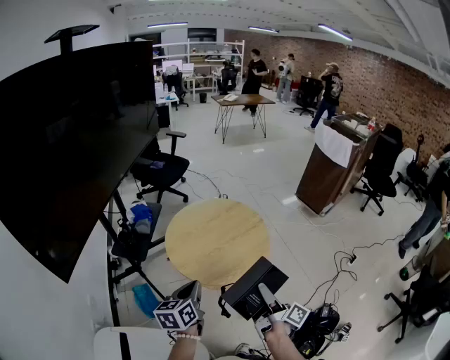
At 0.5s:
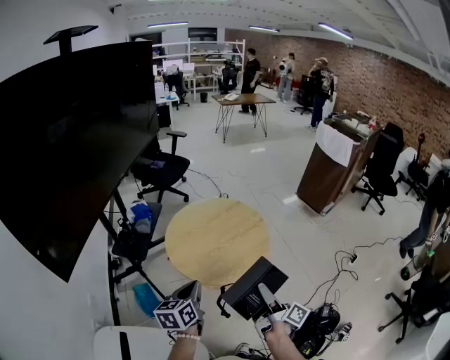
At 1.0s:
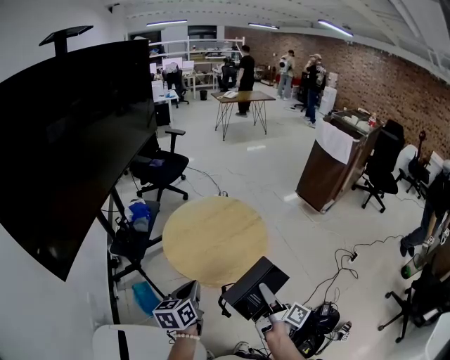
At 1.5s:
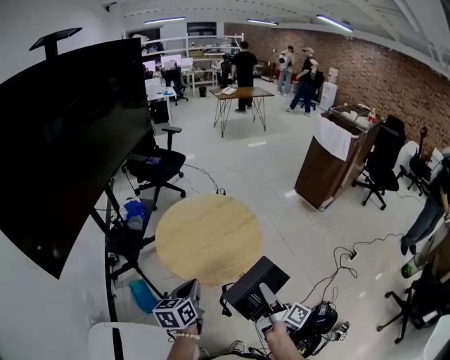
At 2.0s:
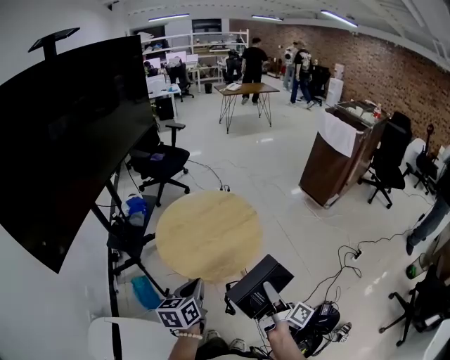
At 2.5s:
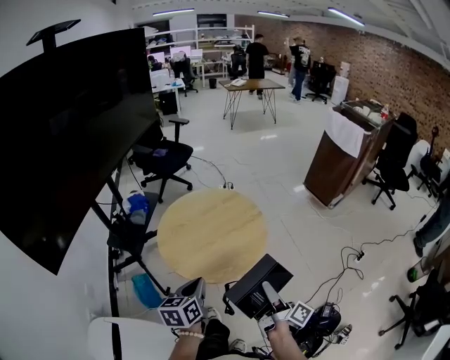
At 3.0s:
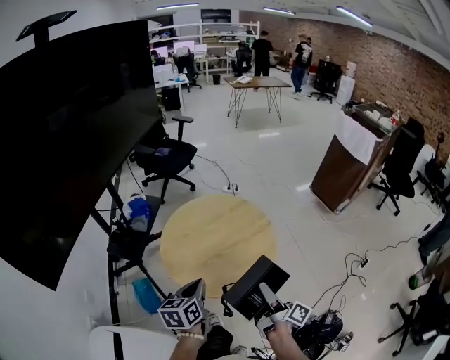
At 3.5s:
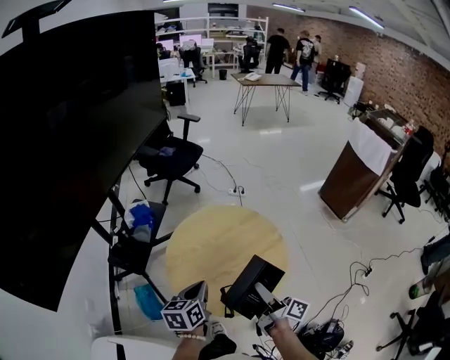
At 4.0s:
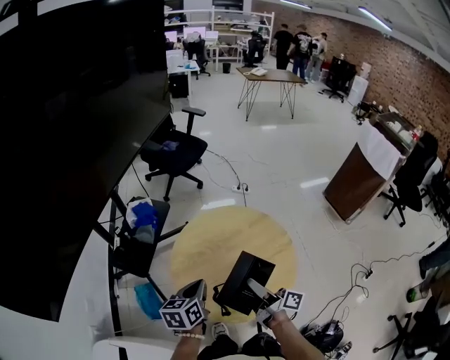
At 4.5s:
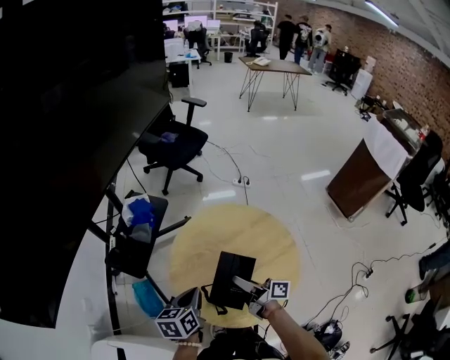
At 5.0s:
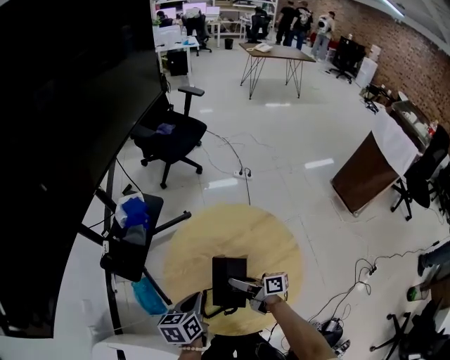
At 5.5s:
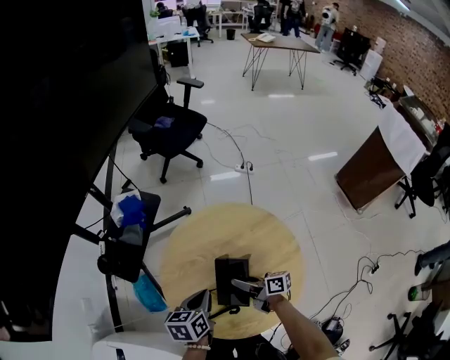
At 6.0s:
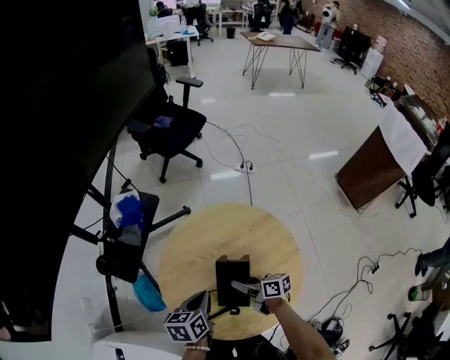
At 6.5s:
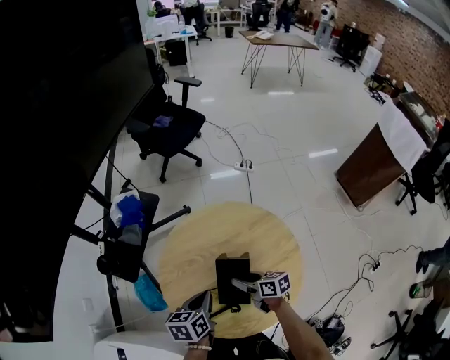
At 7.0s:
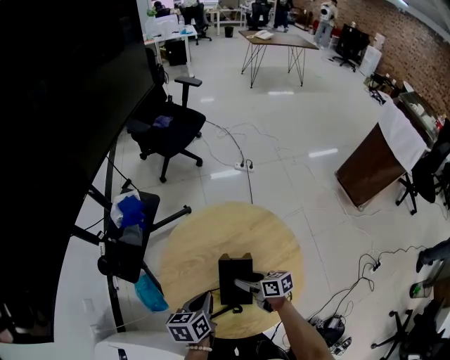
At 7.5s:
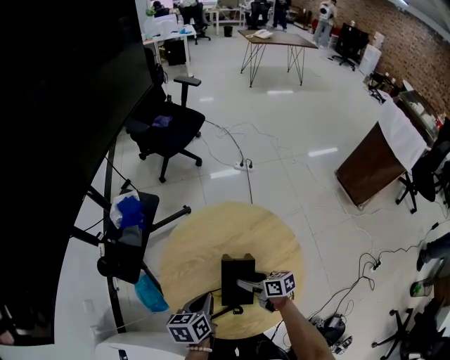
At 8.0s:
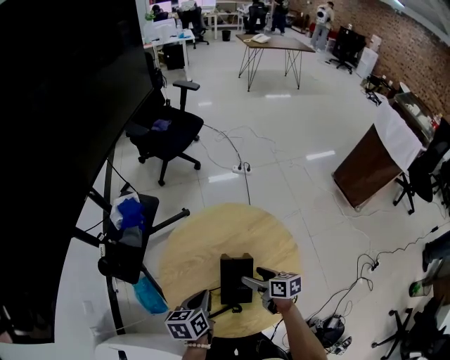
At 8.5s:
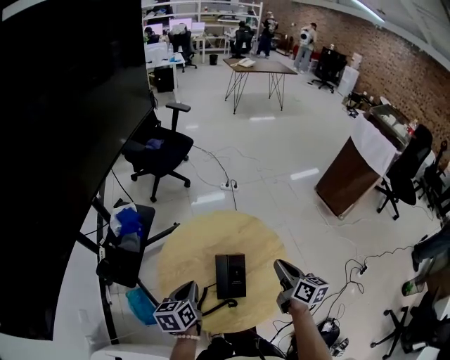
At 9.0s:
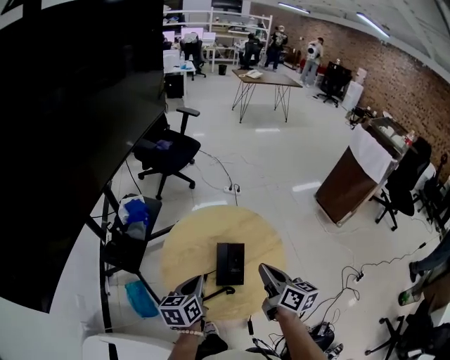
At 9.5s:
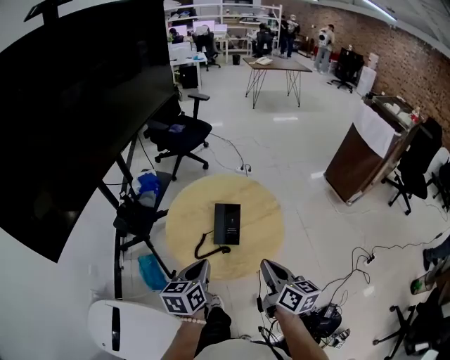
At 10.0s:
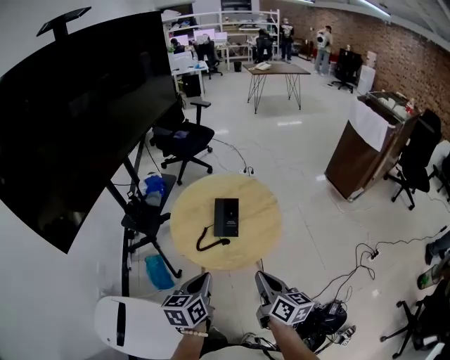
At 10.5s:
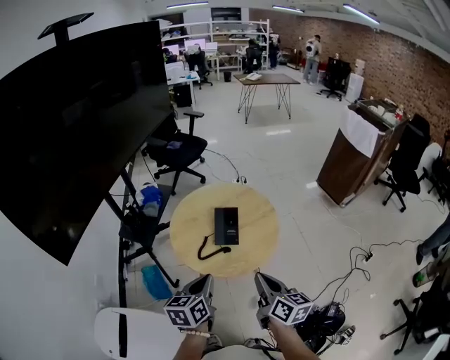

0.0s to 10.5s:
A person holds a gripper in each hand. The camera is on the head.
0.0s to 2.0s: Both grippers travel together to the right, some 10 cm.
2.0s to 4.0s: Both grippers move forward and to the left, roughly 25 cm. The right gripper changes its angle by approximately 30 degrees.
4.0s to 6.5s: The left gripper shifts about 10 cm downward and to the right; the right gripper goes some 20 cm downward and forward, and angles its fingers downward, by some 30 degrees.
6.5s to 8.5s: The left gripper is displaced upward by some 5 cm. Meanwhile the right gripper travels upward and to the right by roughly 25 cm, changes its angle by some 40 degrees, and closes.
8.5s to 10.5s: The two grippers go about 25 cm backward.

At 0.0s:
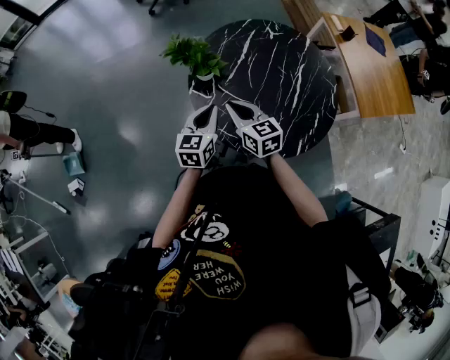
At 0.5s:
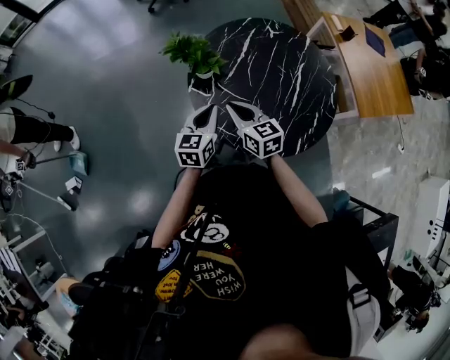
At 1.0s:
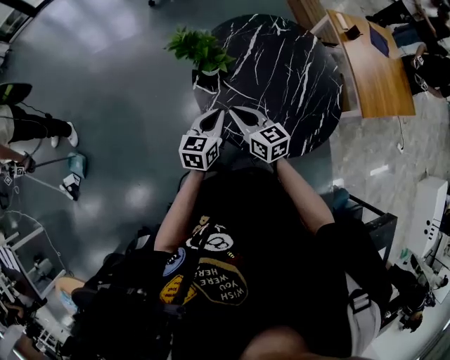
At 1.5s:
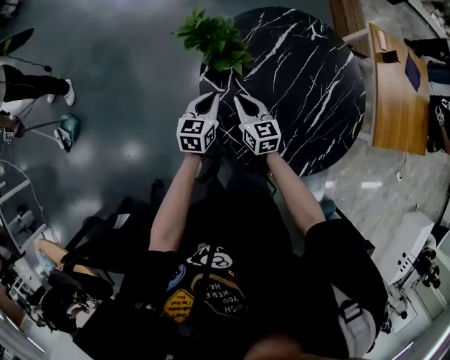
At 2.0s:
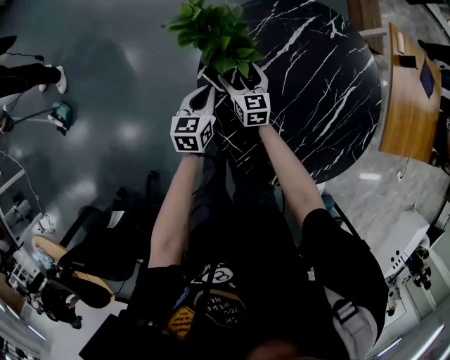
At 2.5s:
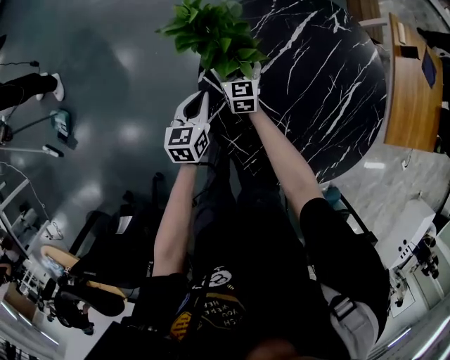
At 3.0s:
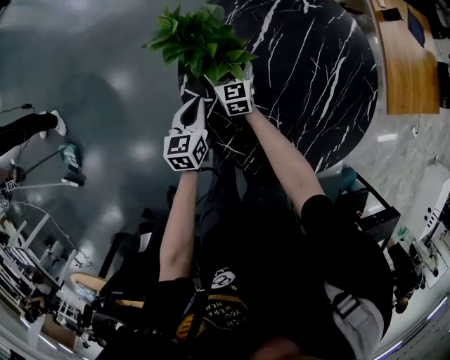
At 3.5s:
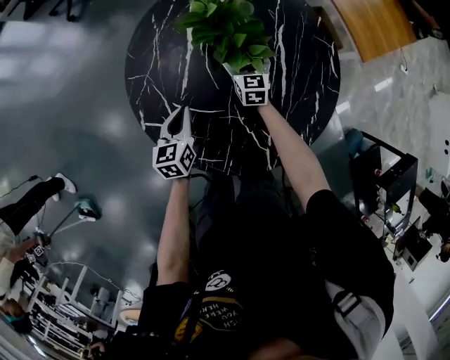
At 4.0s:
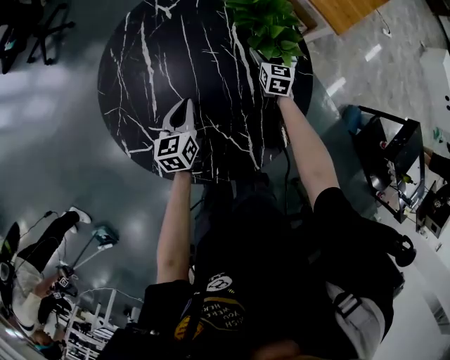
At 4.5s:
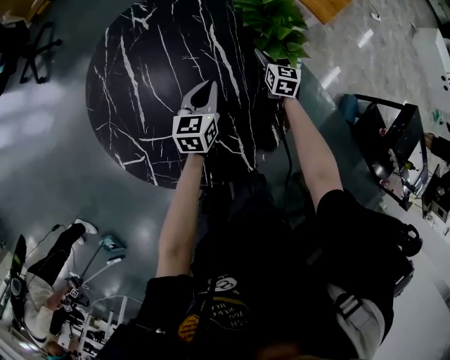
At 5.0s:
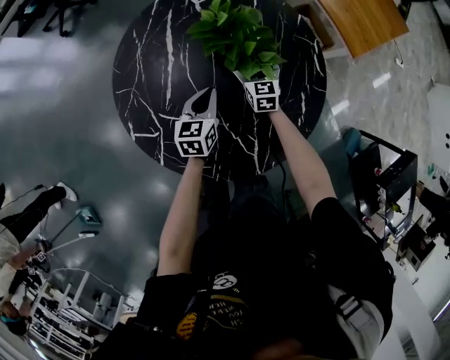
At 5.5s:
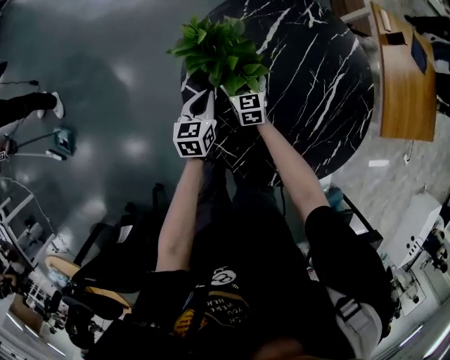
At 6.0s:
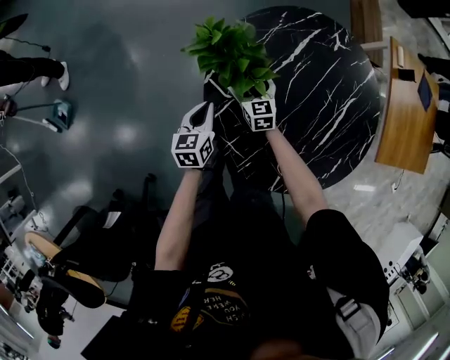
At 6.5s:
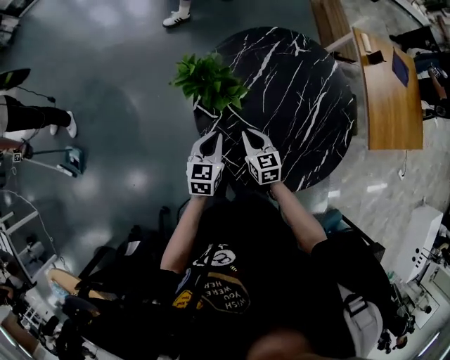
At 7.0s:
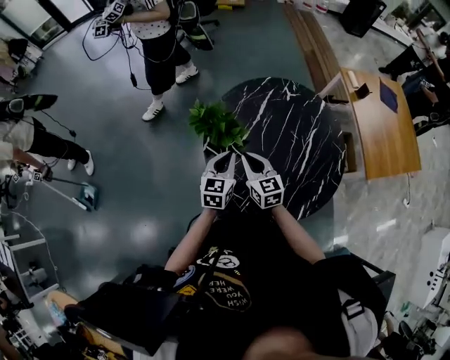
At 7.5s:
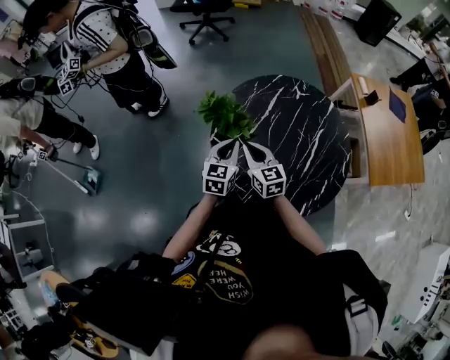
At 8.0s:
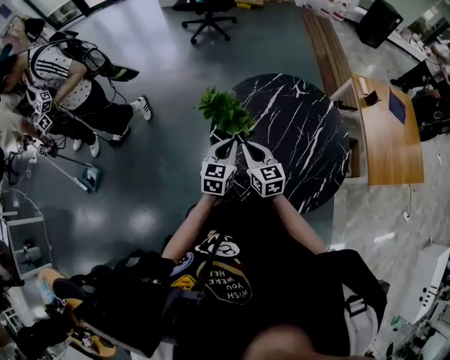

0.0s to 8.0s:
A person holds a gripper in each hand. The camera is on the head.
0.0s to 2.0s: Both grippers travel together downward and forward, roughly 30 cm. The right gripper opens its fingers, while the left gripper swivels some 20 degrees.
2.0s to 4.0s: The left gripper shifts by roughly 30 cm, and changes its angle by roughly 30 degrees. The right gripper changes place by some 50 cm, and changes its angle by about 60 degrees.
4.0s to 6.0s: The right gripper changes place by some 50 cm, and rotates roughly 60 degrees, while the left gripper shifts by approximately 30 cm, and turns by approximately 40 degrees.
6.0s to 8.0s: The left gripper shifts about 20 cm upward, and changes its angle by approximately 30 degrees. Meanwhile the right gripper goes roughly 30 cm upward and backward, and closes.

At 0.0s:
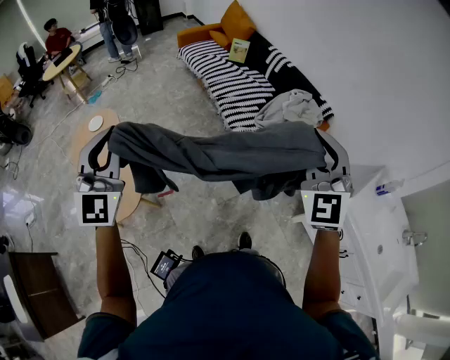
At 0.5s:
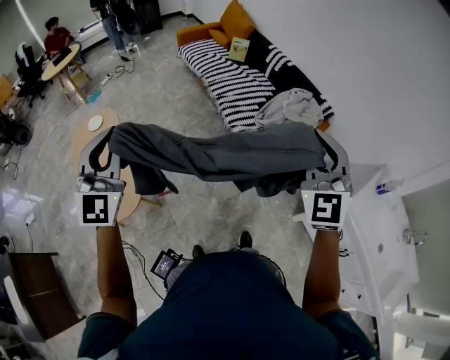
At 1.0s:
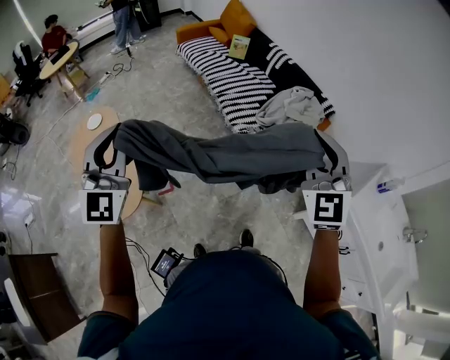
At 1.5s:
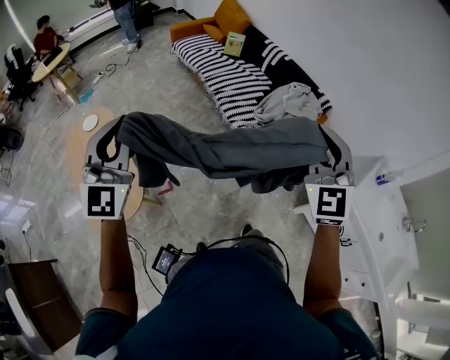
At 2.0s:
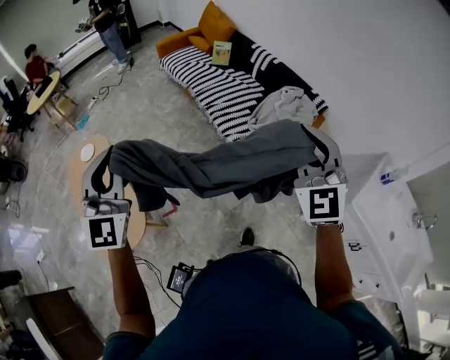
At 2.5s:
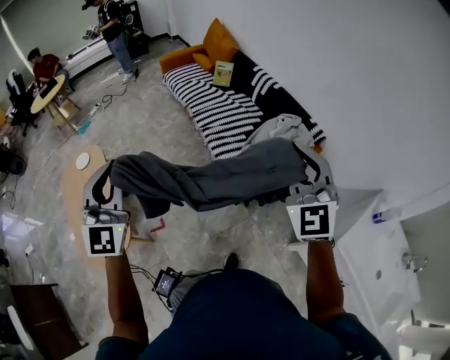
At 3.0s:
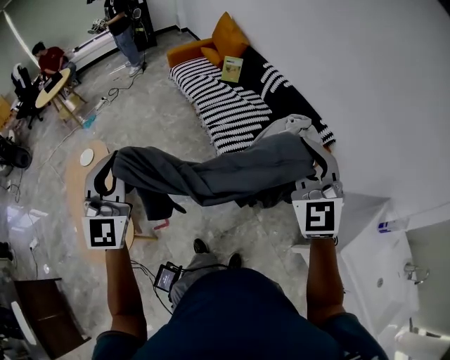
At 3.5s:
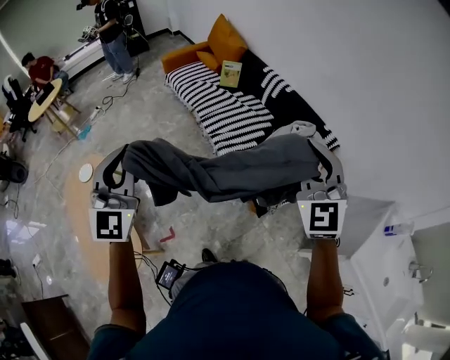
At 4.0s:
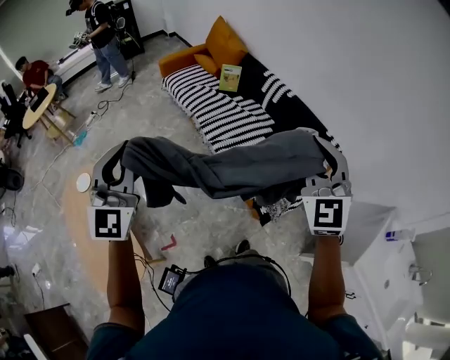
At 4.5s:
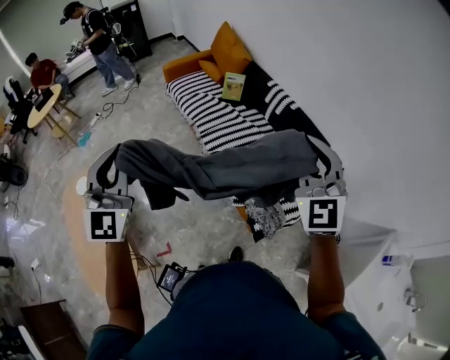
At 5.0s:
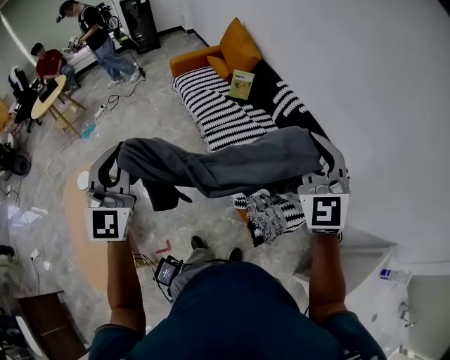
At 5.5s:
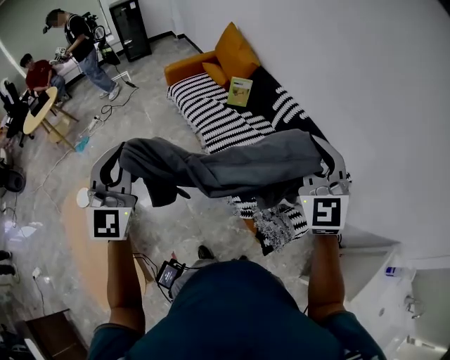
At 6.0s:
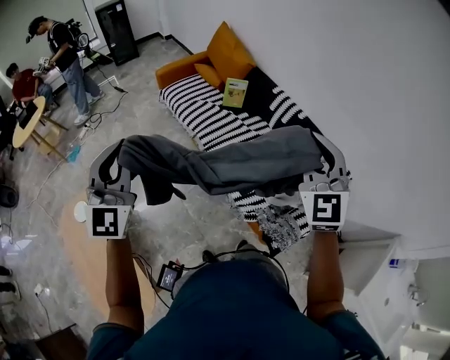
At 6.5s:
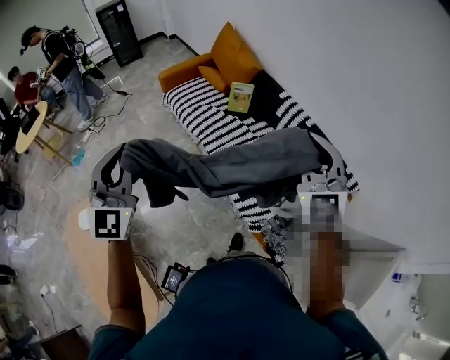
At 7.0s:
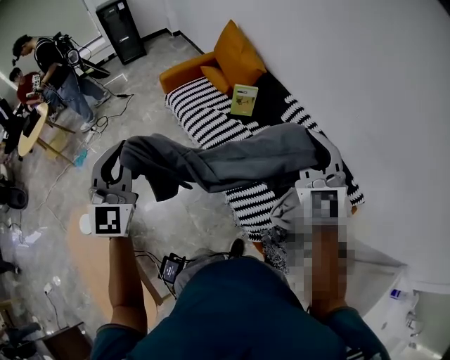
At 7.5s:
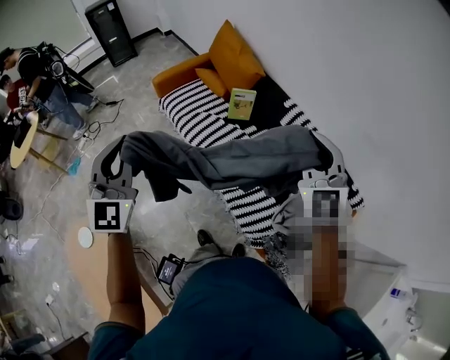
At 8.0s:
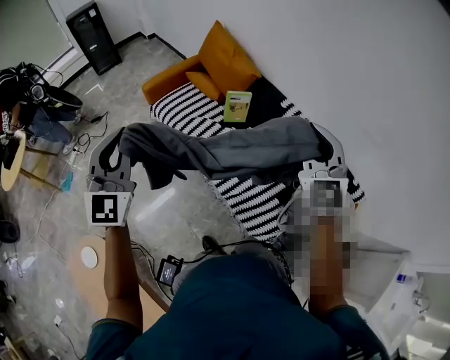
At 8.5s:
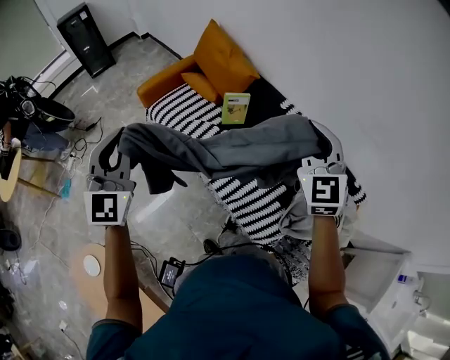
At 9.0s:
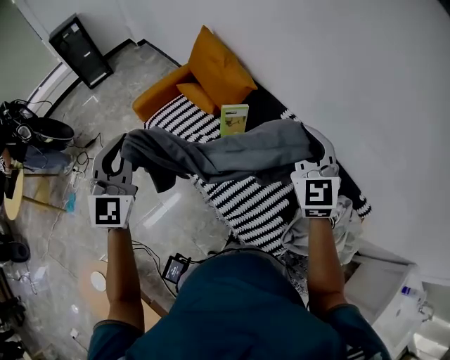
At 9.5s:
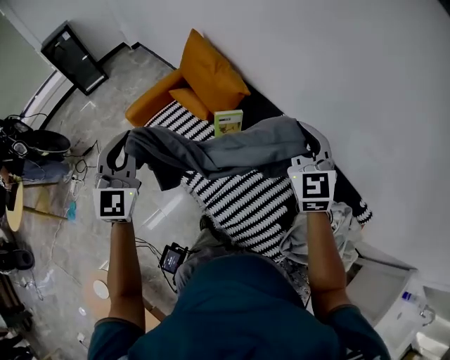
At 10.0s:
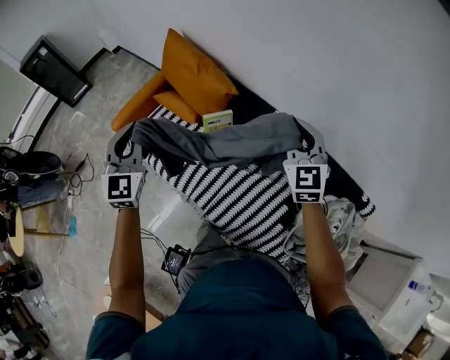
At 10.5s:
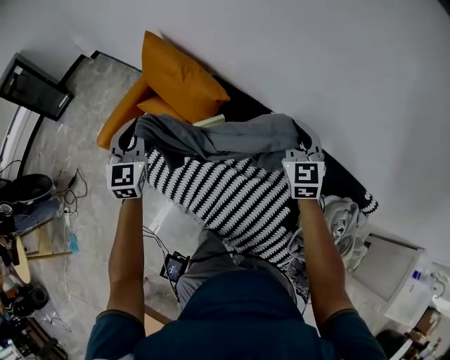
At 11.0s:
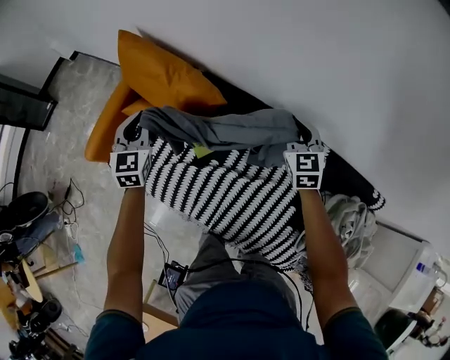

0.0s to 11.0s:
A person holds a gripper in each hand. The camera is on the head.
0.0s to 2.0s: The grippers both shift forward by approximately 10 cm.
2.0s to 3.5s: The two grippers go some 20 cm forward.
3.5s to 5.5s: The grippers both shift forward by roughly 25 cm.
5.5s to 7.5s: Both grippers move forward, roughly 30 cm.
7.5s to 9.0s: The two grippers go some 25 cm forward.
9.0s to 11.0s: The two grippers go about 50 cm forward and downward. The right gripper changes its angle by roughly 30 degrees. The left gripper swivels approximately 30 degrees.
